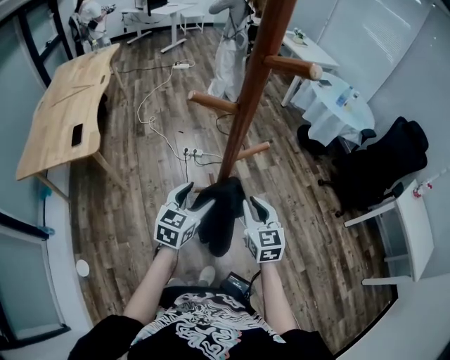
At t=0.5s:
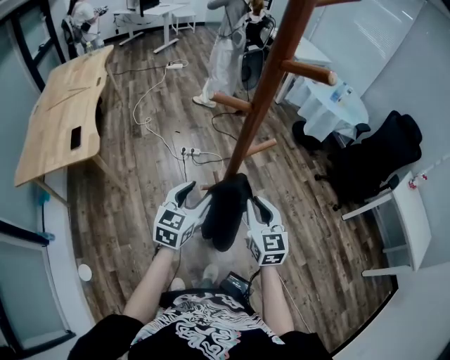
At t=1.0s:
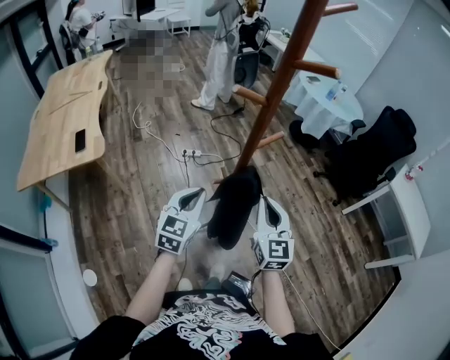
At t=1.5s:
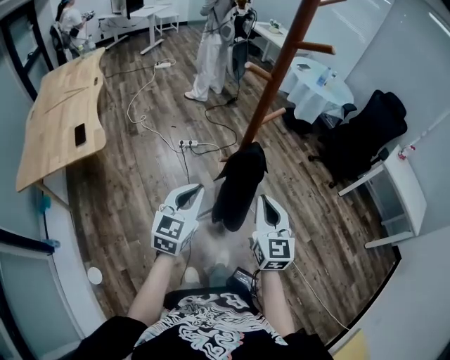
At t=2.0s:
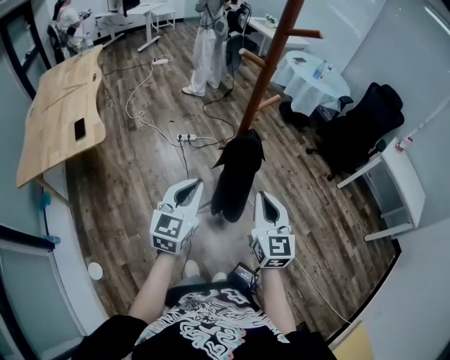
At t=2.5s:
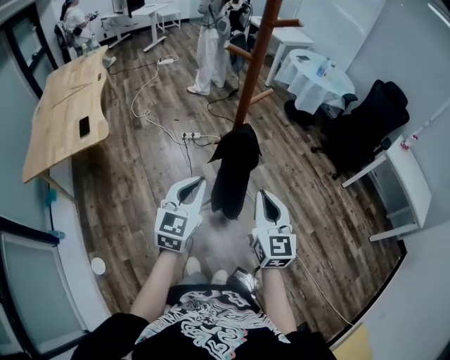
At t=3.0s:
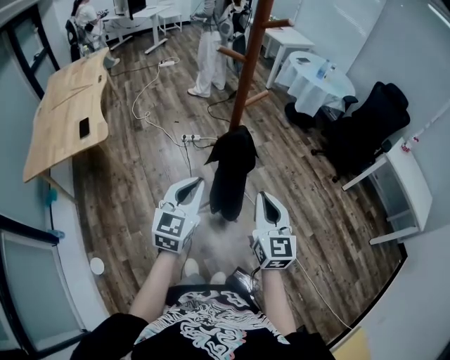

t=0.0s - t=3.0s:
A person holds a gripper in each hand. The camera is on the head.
t=0.0s - t=1.5s: The left gripper goes some 20 cm backward, to the left and upward, and closes up, while the right gripper shifts approximately 20 cm backward and upward, and changes its angle by some 20 degrees.
t=1.5s - t=3.0s: Both grippers move to the right and backward, about 10 cm.

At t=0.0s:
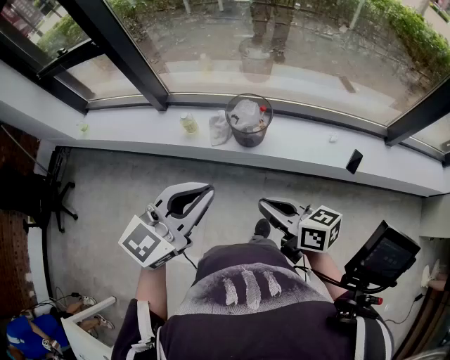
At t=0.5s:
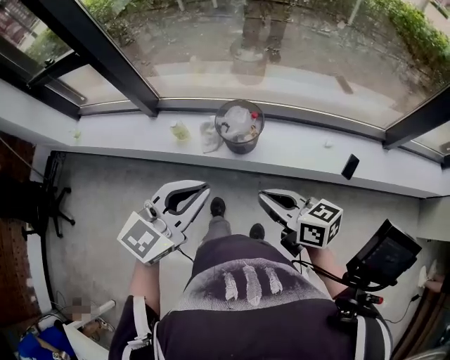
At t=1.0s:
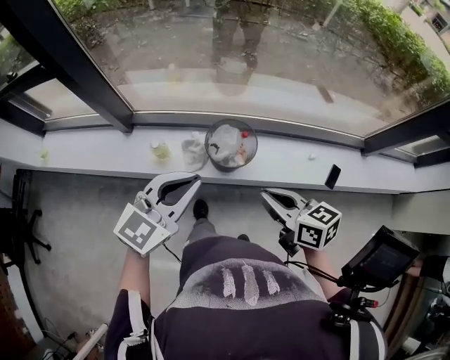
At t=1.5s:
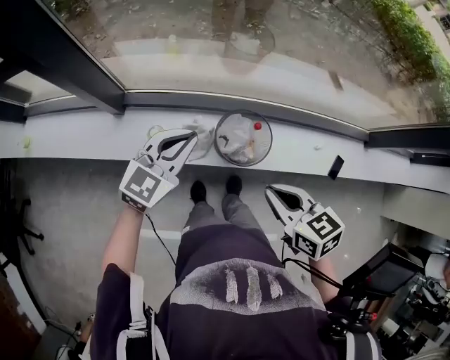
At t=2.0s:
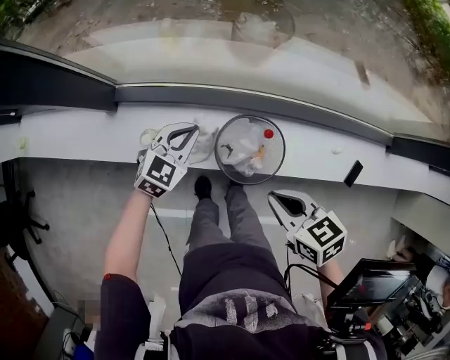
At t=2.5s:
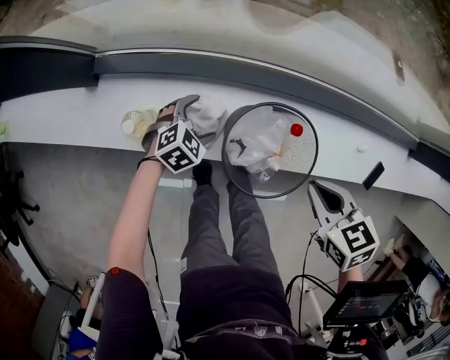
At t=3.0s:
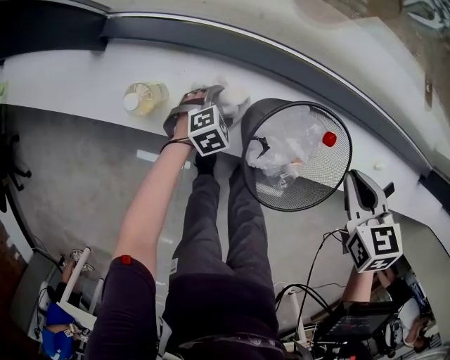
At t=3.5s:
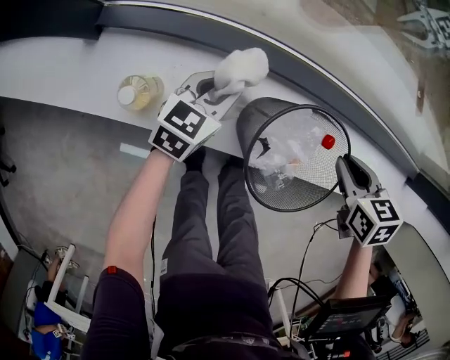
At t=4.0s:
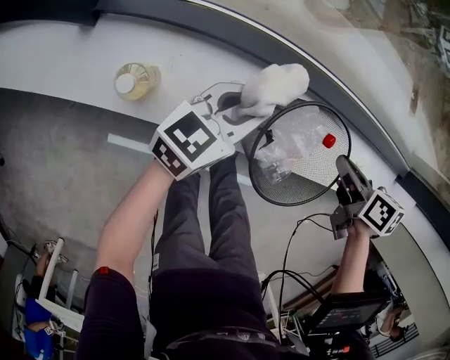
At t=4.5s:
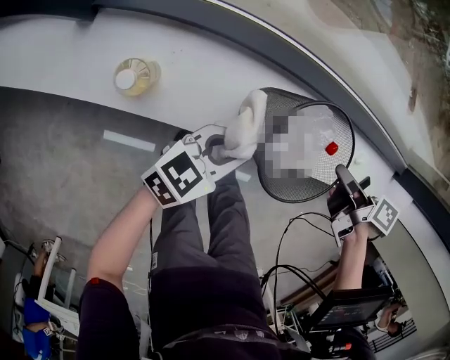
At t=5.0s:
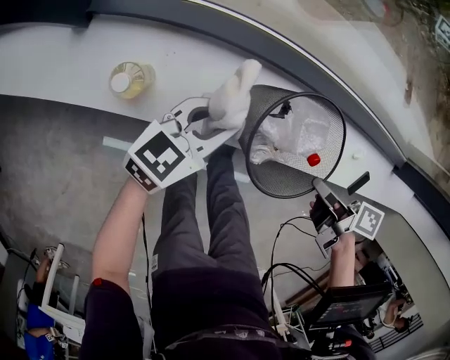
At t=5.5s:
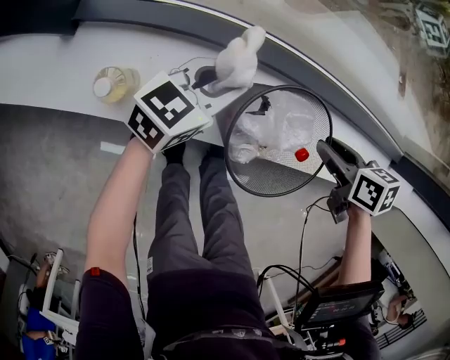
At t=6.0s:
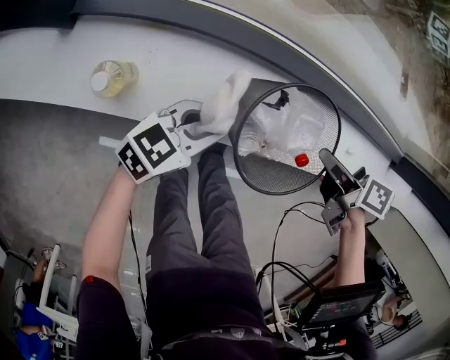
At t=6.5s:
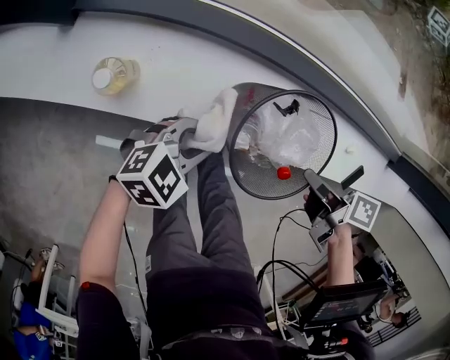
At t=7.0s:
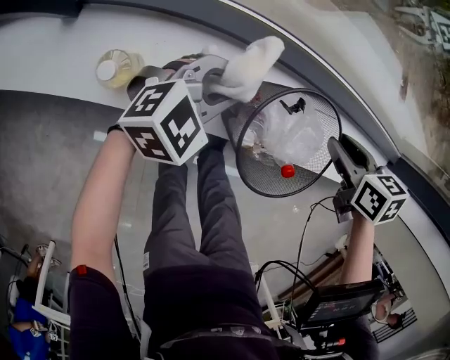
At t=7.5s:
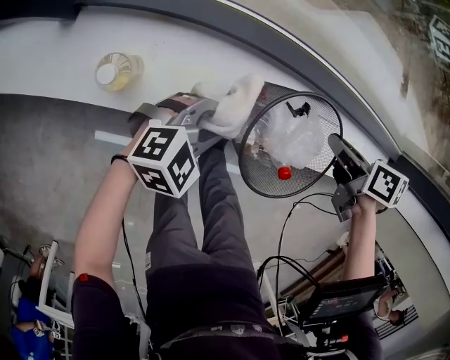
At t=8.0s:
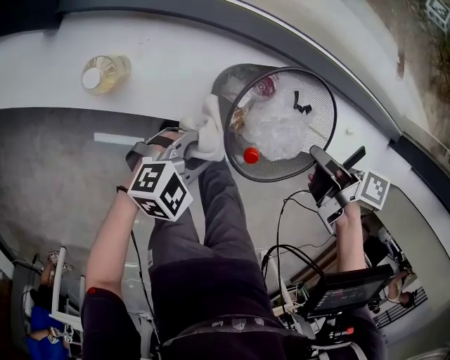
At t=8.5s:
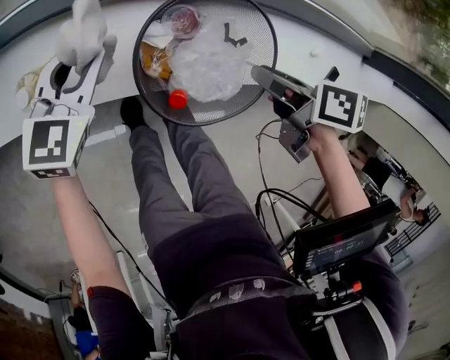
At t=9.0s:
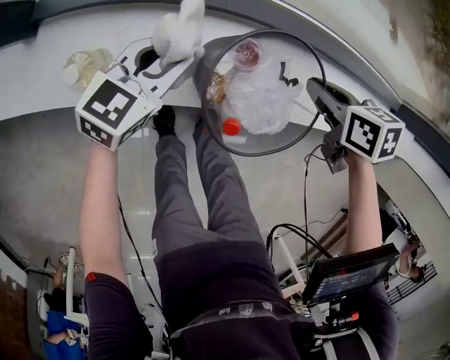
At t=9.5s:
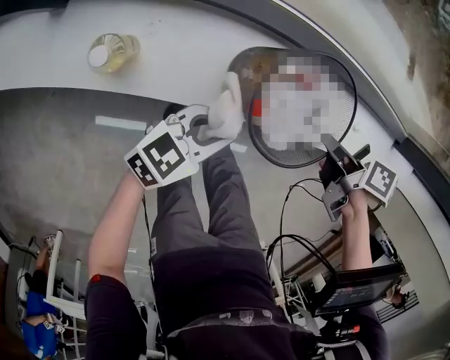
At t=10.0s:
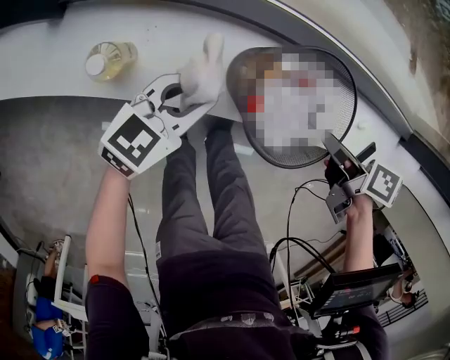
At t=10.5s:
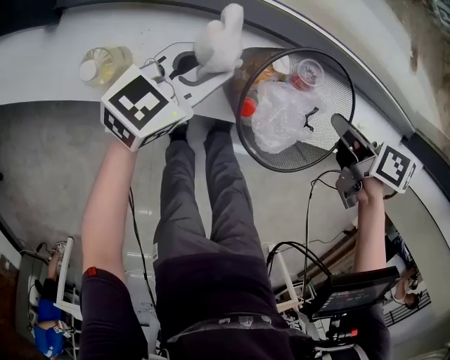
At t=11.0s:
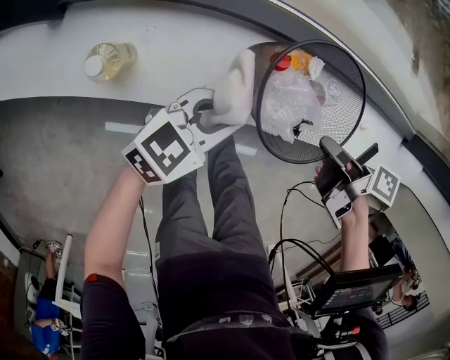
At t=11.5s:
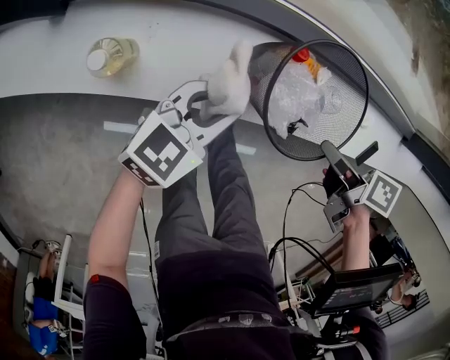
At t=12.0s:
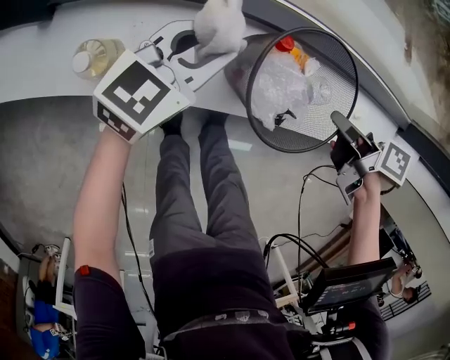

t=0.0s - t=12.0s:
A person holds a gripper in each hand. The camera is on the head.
t=0.0s - t=2.0s: The left gripper shifts by roughly 60 cm, and changes its angle by some 30 degrees.
t=2.0s - t=4.0s: The left gripper moves downward, approximately 10 cm, turns by some 30 degrees, and opens, then closes once more.
t=4.0s - t=6.0s: The left gripper moves approximately 10 cm.
t=6.0s - t=8.0s: The left gripper ends up roughly 10 cm from where it was, and rotates about 30 degrees.
t=8.0s - t=10.0s: The left gripper swivels roughly 30 degrees.
t=10.0s - t=12.0s: The left gripper ends up roughly 10 cm from where it was.

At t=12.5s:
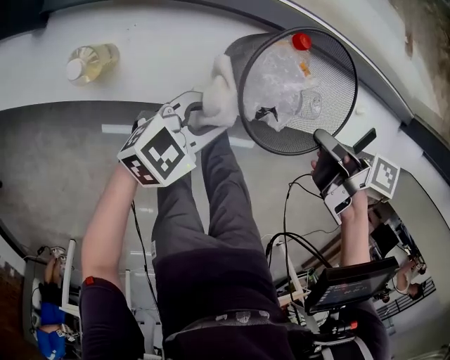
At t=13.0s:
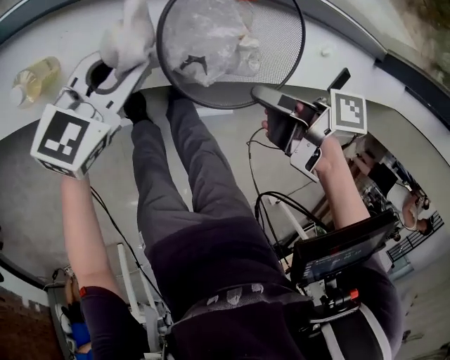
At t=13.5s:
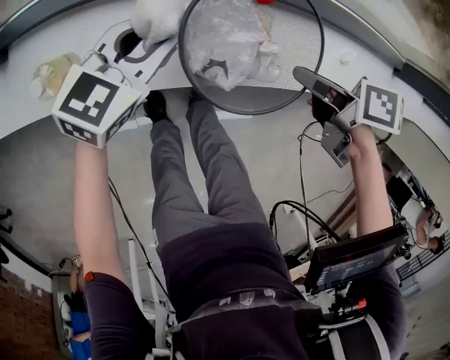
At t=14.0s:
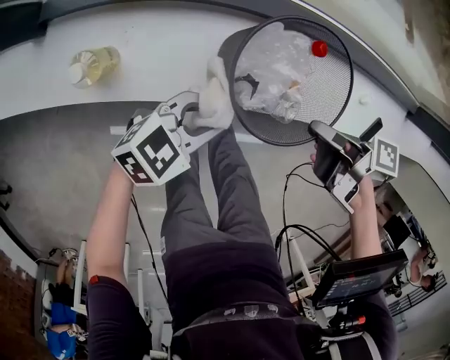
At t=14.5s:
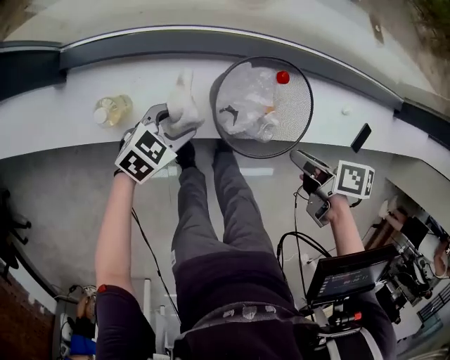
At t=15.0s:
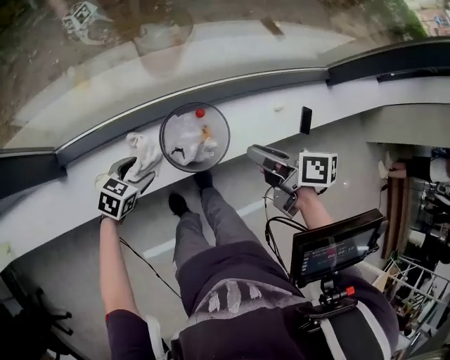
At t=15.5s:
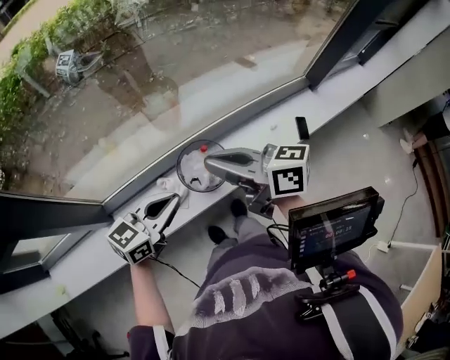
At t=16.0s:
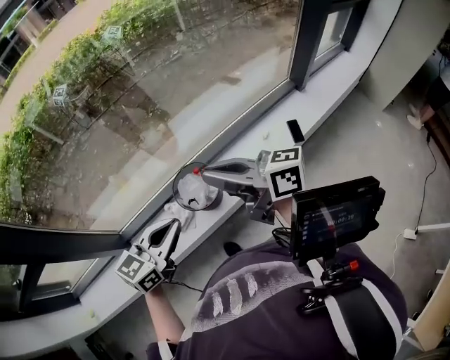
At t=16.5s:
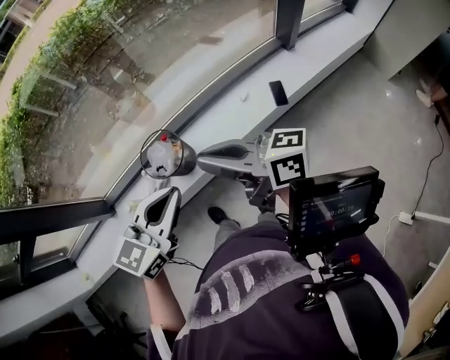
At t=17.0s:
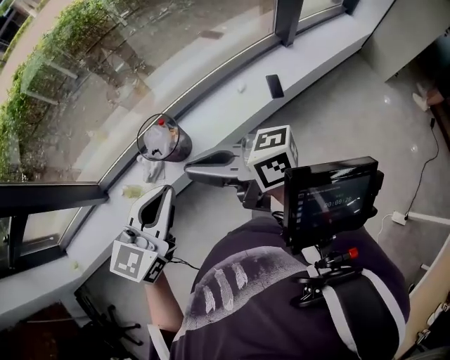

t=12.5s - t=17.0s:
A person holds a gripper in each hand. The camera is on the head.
t=12.5s - t=14.5s: The left gripper shifts by some 10 cm.
t=14.5s - t=17.0s: The left gripper goes roughly 50 cm upward, changes its angle by roughly 40 degrees, and closes its fingers.

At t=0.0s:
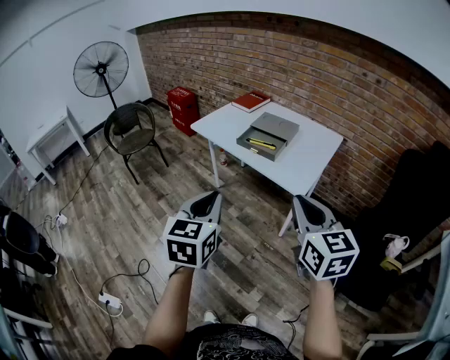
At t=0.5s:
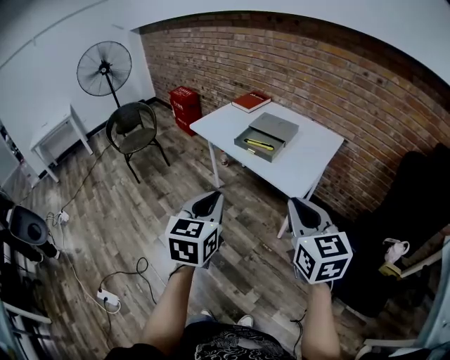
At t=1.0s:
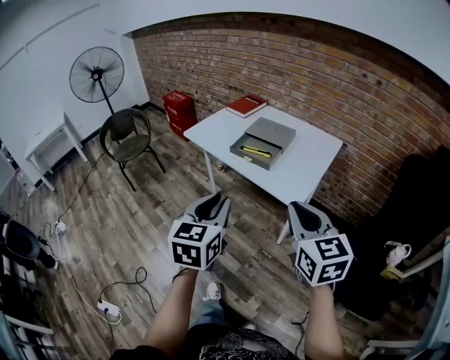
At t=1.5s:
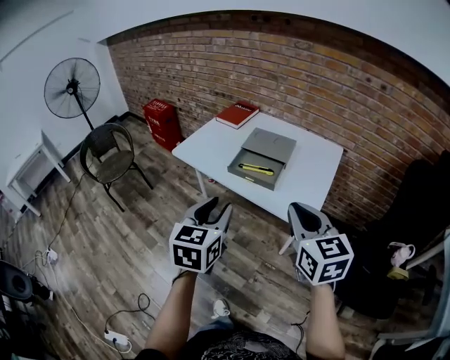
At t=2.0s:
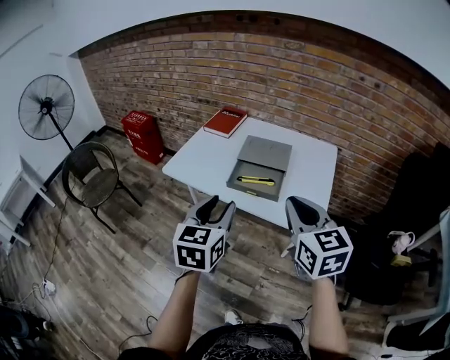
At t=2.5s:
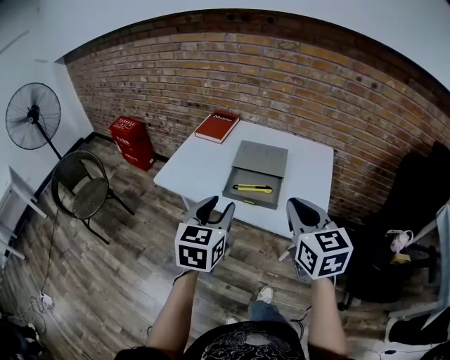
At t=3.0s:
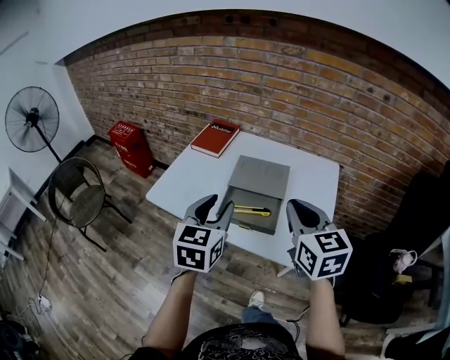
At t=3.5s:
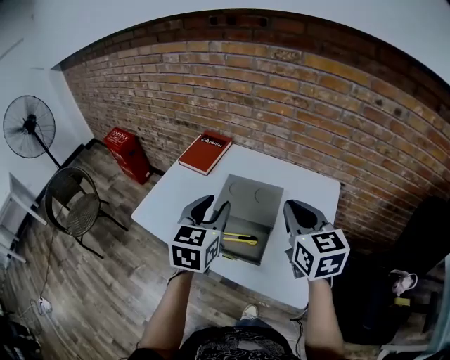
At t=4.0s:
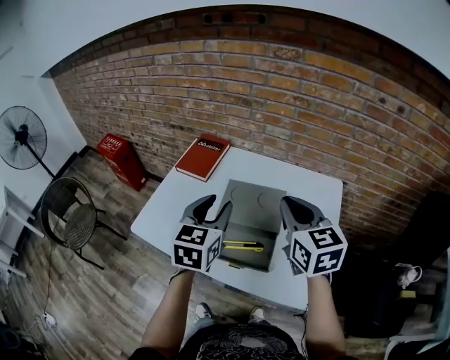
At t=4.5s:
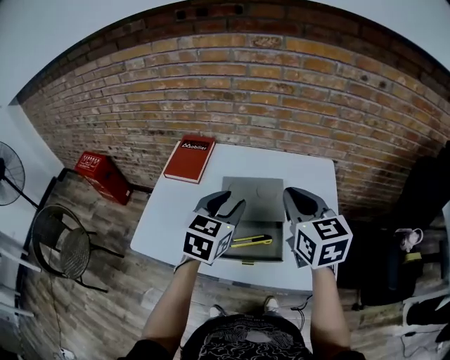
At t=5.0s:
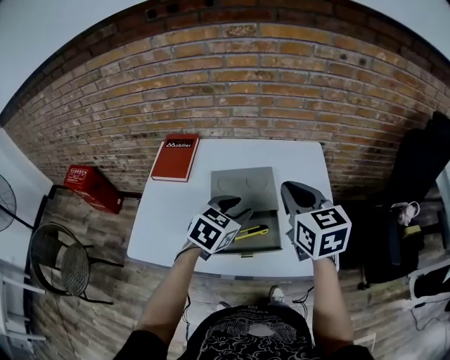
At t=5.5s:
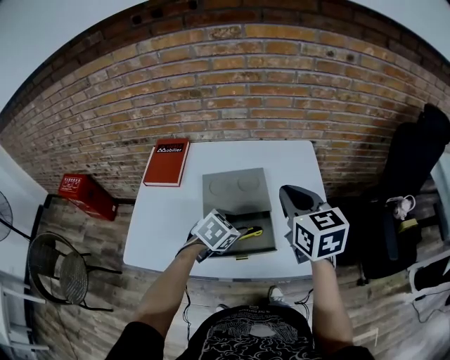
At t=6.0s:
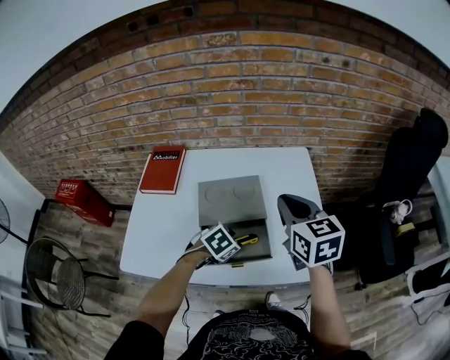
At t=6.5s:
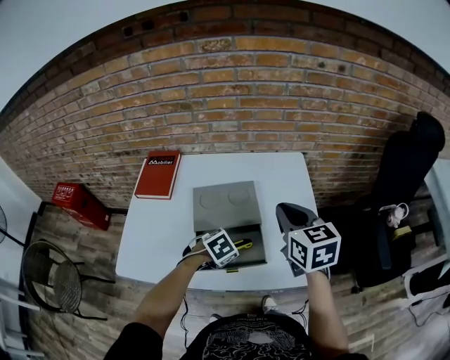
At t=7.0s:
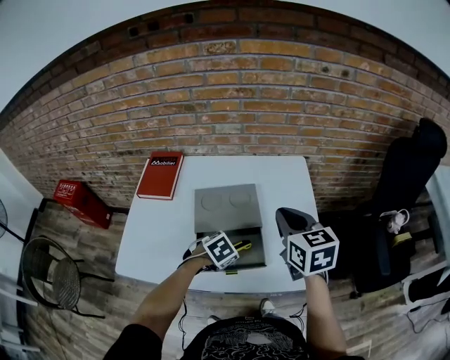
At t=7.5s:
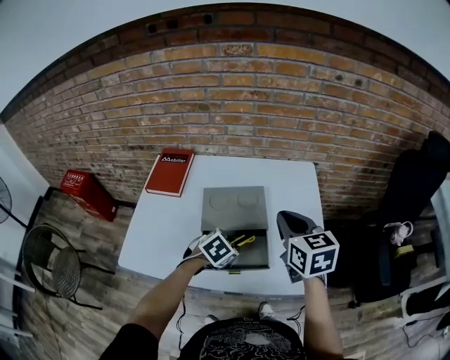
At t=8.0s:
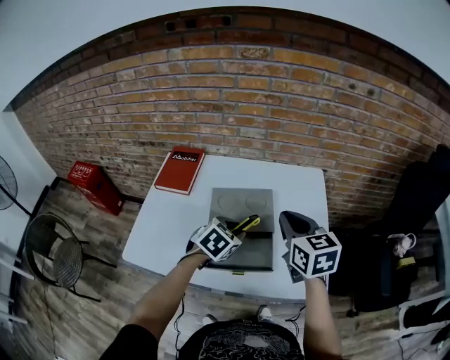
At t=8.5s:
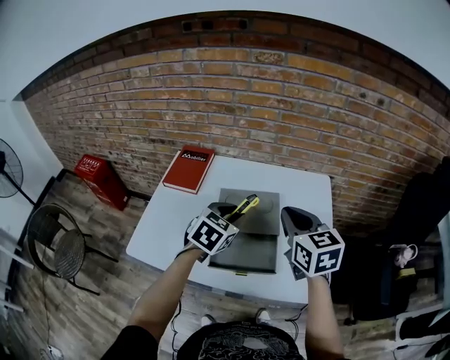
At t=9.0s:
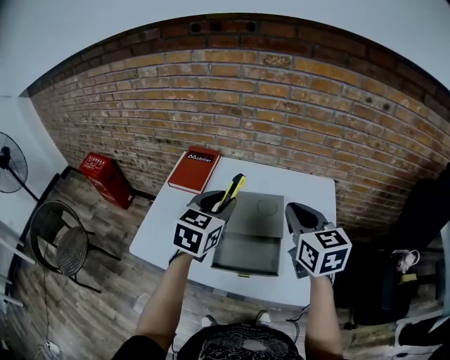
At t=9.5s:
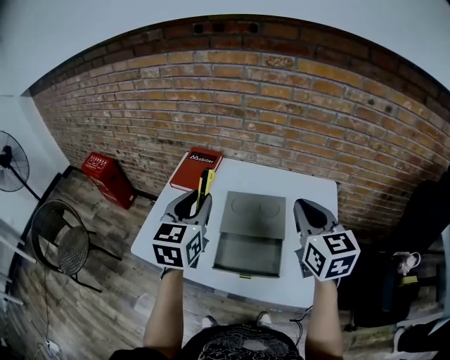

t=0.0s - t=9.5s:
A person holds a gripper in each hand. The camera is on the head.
t=0.0s - t=2.0s: Both grippers move forward, approximately 25 cm. The left gripper opens its fingers.
t=2.0s - t=4.0s: Both grippers travel together forward, about 30 cm.
t=4.0s - t=5.5s: The left gripper heads downward, covering some 20 cm, and angles its fingers downward, by approximately 30 degrees. The right gripper changes place by approximately 5 cm.
t=7.5s - t=9.5s: The left gripper is displaced upward by approximately 25 cm, and angles its fingers upward, by roughly 50 degrees. The right gripper heads upward, covering approximately 10 cm.
